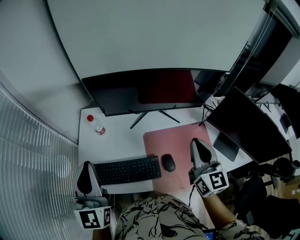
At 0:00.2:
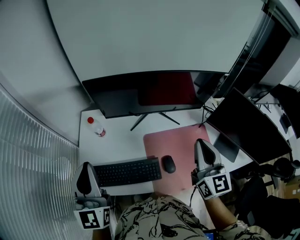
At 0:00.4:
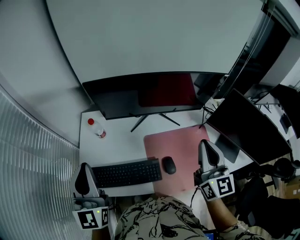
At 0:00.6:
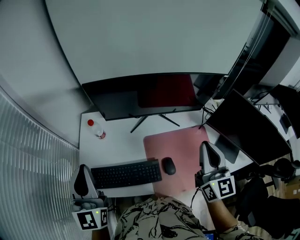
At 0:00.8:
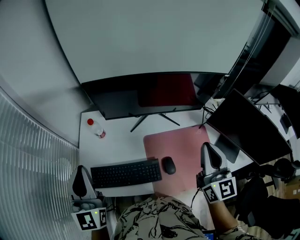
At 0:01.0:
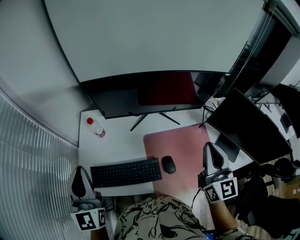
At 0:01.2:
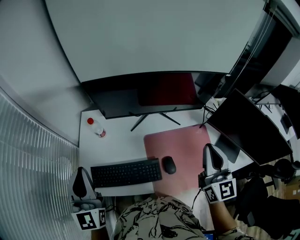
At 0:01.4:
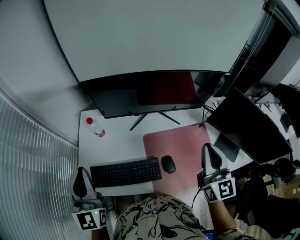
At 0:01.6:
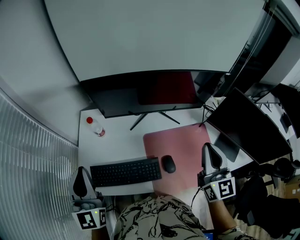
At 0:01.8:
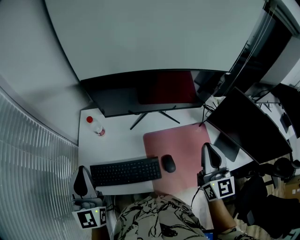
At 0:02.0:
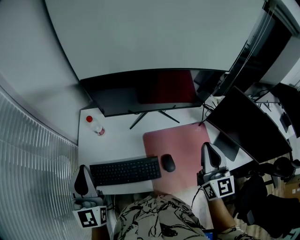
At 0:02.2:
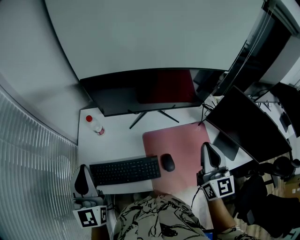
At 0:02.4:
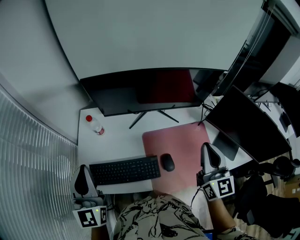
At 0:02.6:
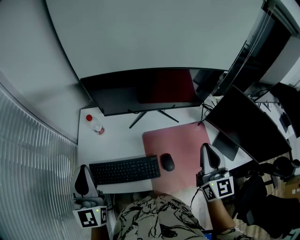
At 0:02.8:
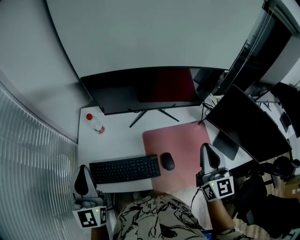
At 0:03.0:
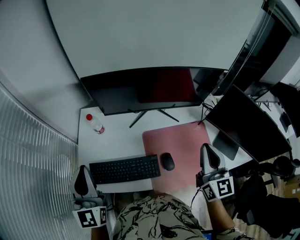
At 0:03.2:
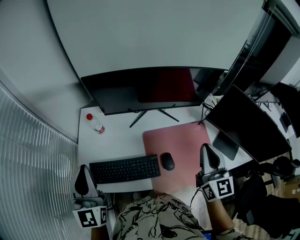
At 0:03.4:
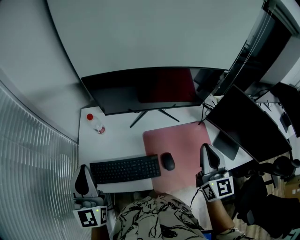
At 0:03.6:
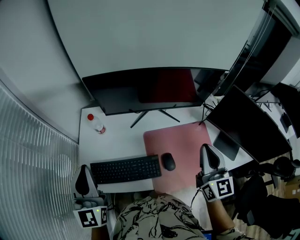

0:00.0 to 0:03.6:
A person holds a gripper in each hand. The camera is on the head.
0:00.0 to 0:03.6: The grippers move only a little.

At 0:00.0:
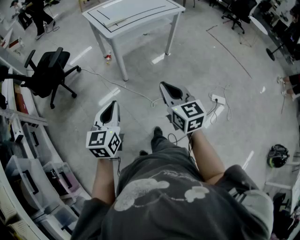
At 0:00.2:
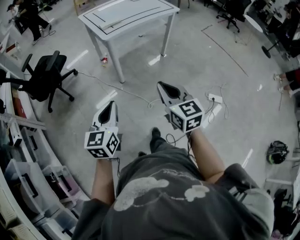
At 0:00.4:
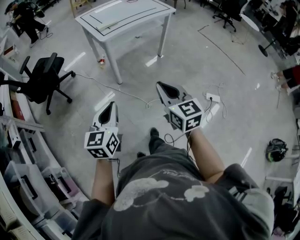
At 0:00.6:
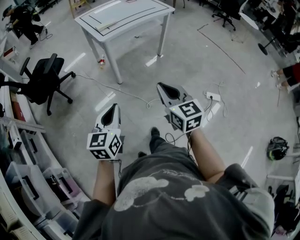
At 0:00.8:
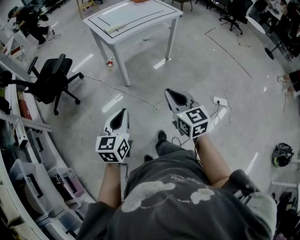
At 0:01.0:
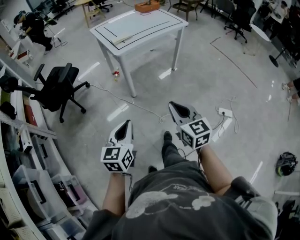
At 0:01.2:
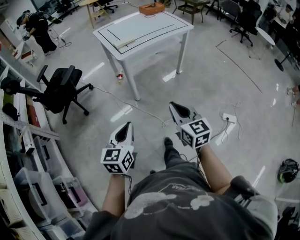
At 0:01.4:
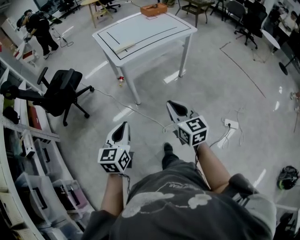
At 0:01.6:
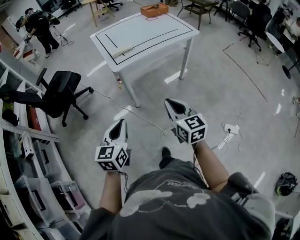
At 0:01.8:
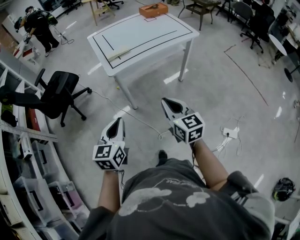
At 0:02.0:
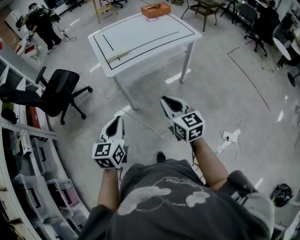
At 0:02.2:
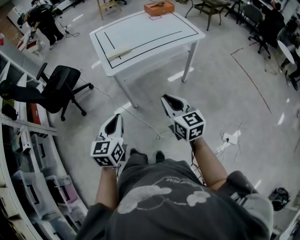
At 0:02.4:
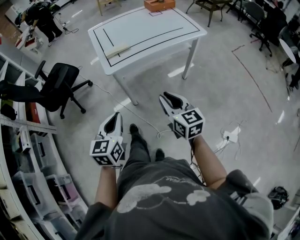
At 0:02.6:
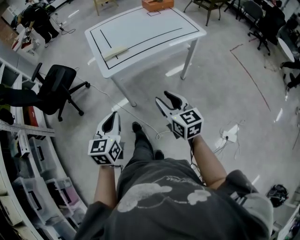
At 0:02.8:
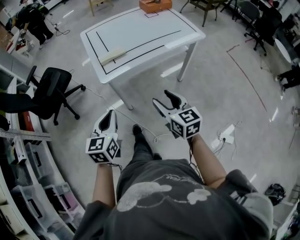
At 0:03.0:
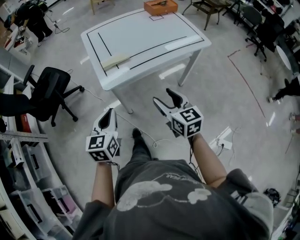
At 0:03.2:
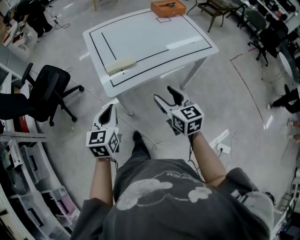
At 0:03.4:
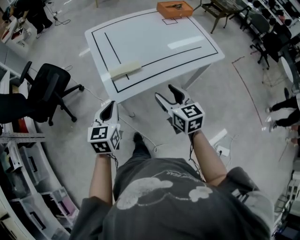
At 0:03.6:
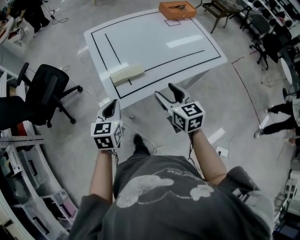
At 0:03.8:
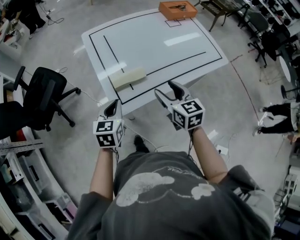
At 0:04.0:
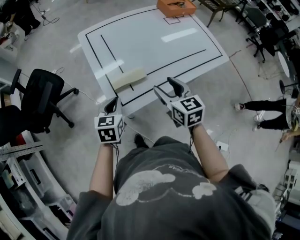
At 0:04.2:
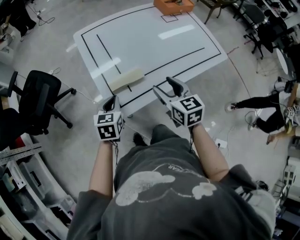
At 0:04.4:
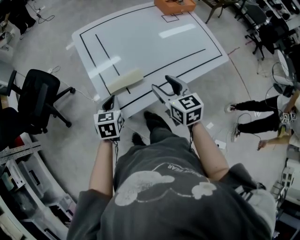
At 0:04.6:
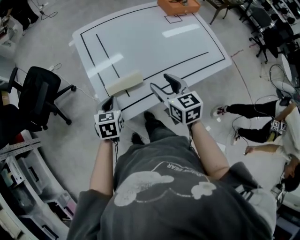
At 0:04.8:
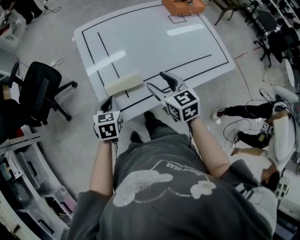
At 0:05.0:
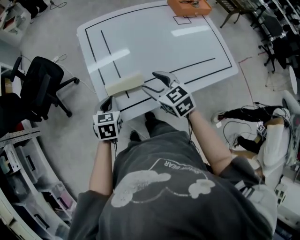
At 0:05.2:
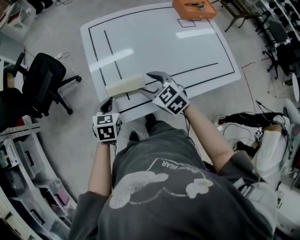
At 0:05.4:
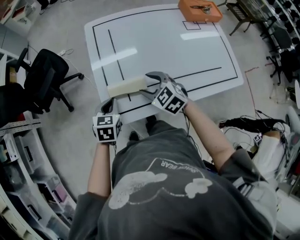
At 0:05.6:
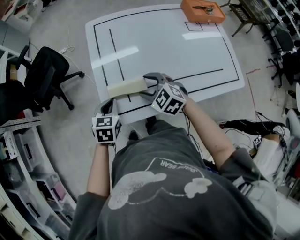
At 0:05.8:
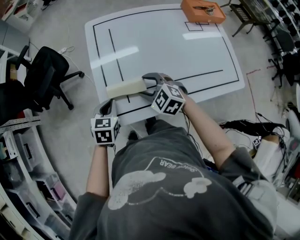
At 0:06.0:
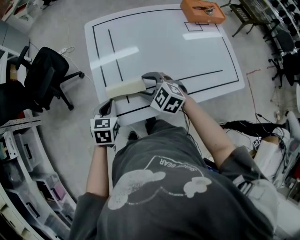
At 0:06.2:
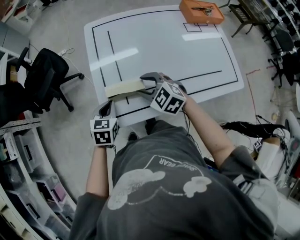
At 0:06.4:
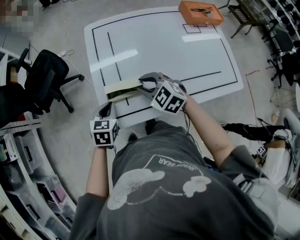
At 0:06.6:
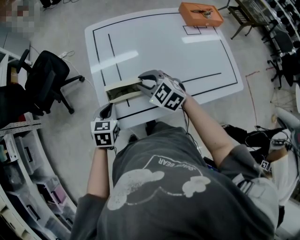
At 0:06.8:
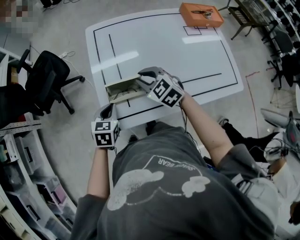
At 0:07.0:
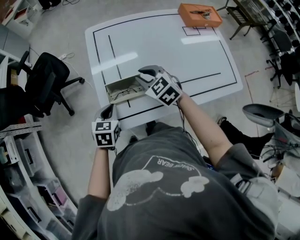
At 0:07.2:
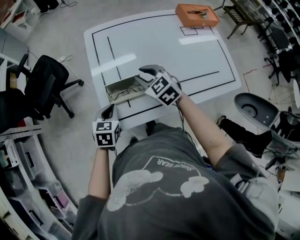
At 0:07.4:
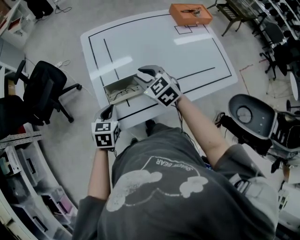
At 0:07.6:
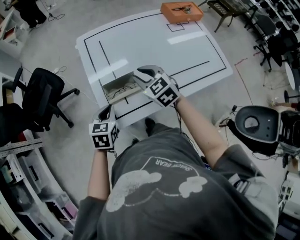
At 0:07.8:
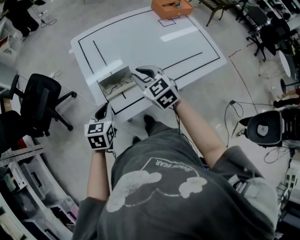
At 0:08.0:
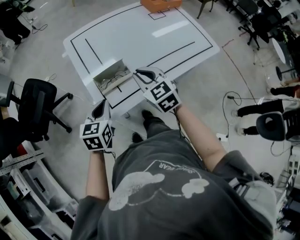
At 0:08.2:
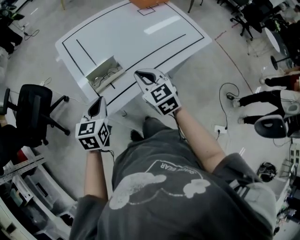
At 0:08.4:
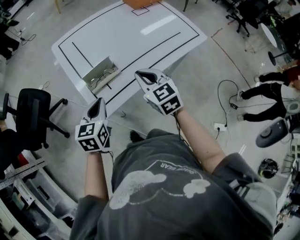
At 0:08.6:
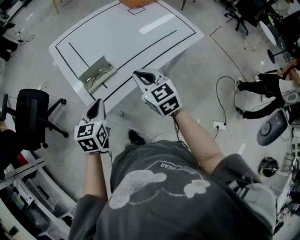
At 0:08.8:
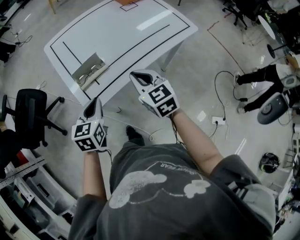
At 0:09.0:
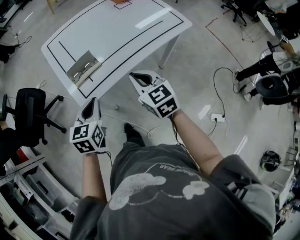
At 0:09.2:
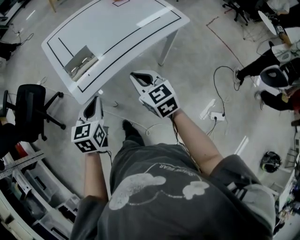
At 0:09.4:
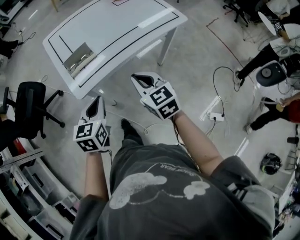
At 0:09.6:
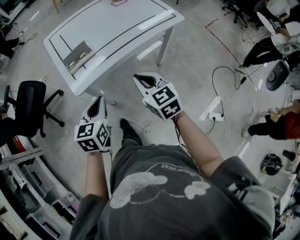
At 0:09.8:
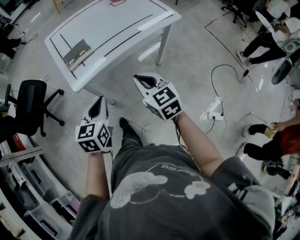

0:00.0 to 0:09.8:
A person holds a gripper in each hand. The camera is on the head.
0:00.0 to 0:01.4: The two grippers go roughly 10 cm forward.
0:01.4 to 0:02.8: Both grippers move forward, some 25 cm. The right gripper opens its fingers.
0:02.8 to 0:04.2: The two grippers go approximately 30 cm forward.
0:04.2 to 0:05.6: The right gripper changes place by about 15 cm, and rotates approximately 60 degrees.
0:05.6 to 0:07.0: The right gripper heads forward, covering about 5 cm, and closes.
0:07.0 to 0:08.4: The right gripper changes place by about 20 cm, and swivels about 40 degrees, while the left gripper travels upward by some 10 cm, and rotates some 20 degrees.
0:08.4 to 0:09.8: The grippers both shift backward and to the right by approximately 25 cm.

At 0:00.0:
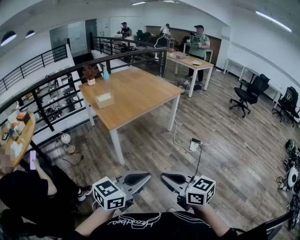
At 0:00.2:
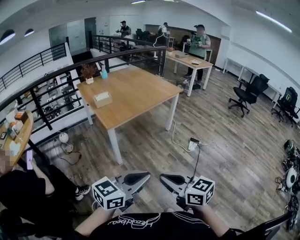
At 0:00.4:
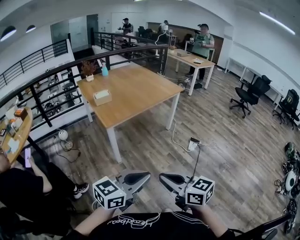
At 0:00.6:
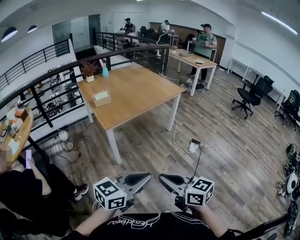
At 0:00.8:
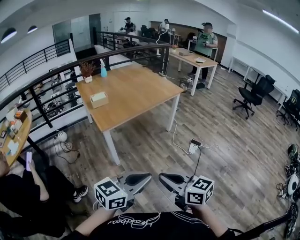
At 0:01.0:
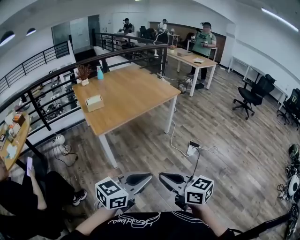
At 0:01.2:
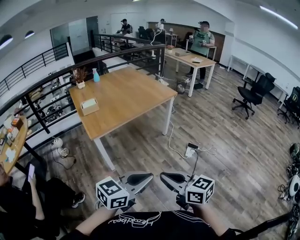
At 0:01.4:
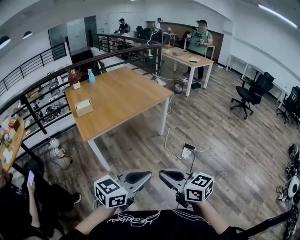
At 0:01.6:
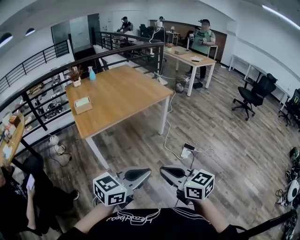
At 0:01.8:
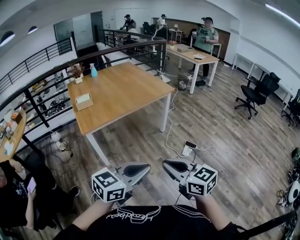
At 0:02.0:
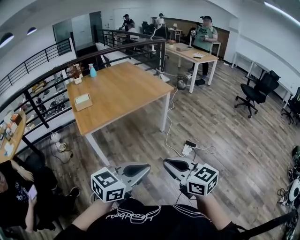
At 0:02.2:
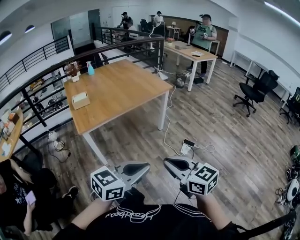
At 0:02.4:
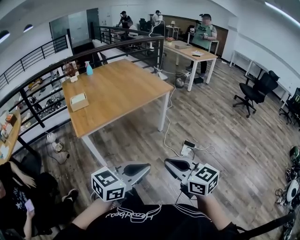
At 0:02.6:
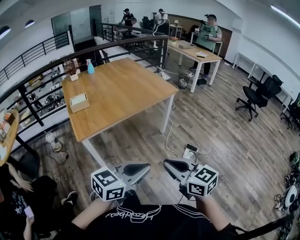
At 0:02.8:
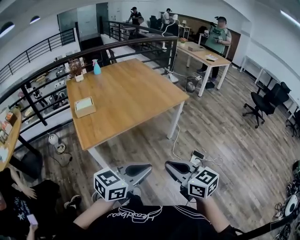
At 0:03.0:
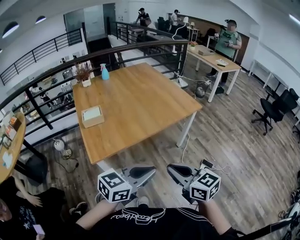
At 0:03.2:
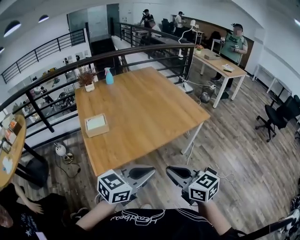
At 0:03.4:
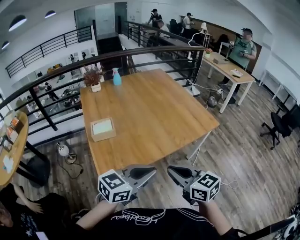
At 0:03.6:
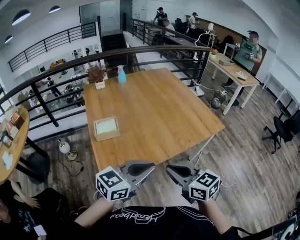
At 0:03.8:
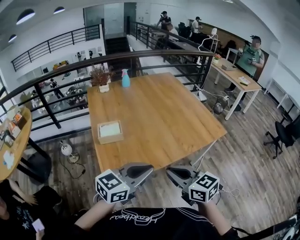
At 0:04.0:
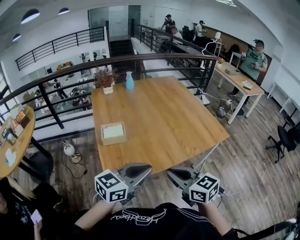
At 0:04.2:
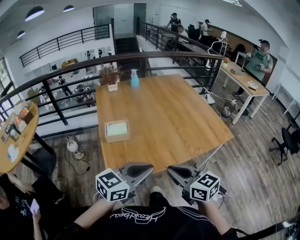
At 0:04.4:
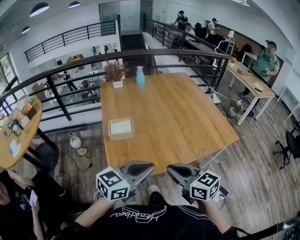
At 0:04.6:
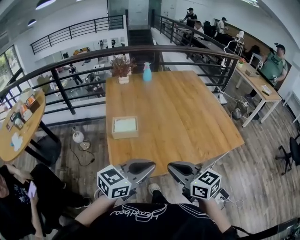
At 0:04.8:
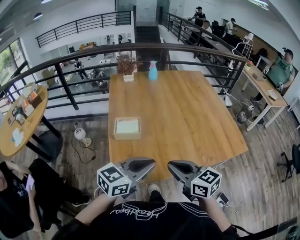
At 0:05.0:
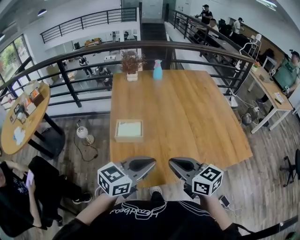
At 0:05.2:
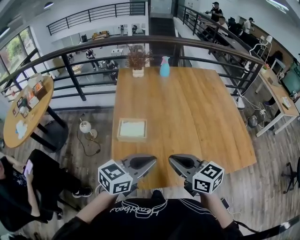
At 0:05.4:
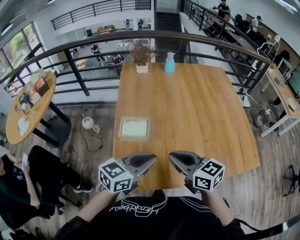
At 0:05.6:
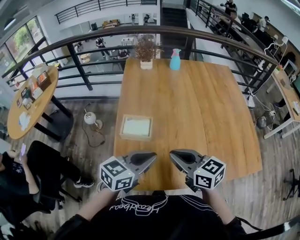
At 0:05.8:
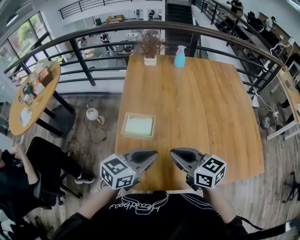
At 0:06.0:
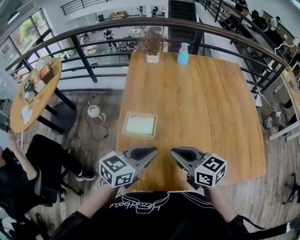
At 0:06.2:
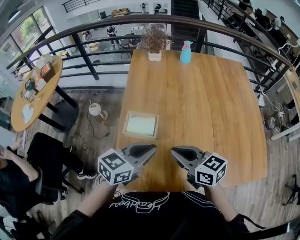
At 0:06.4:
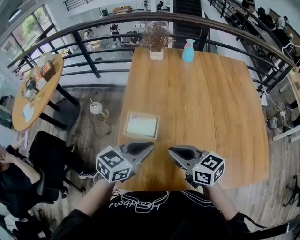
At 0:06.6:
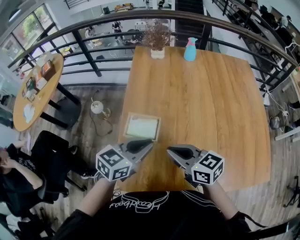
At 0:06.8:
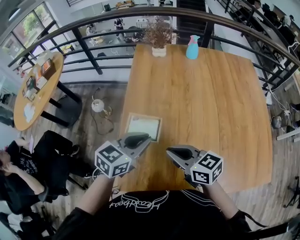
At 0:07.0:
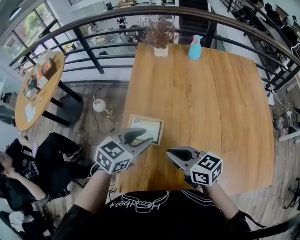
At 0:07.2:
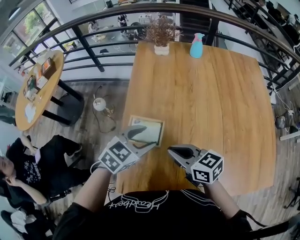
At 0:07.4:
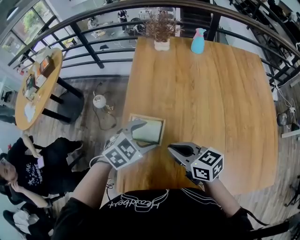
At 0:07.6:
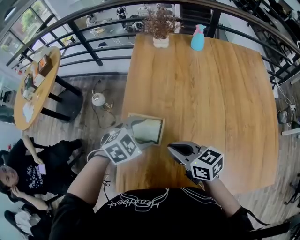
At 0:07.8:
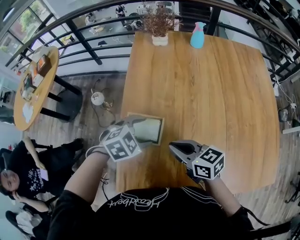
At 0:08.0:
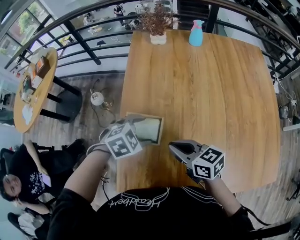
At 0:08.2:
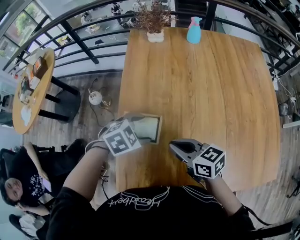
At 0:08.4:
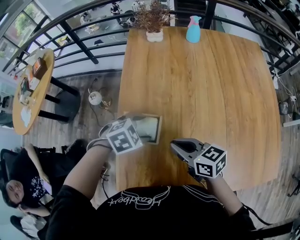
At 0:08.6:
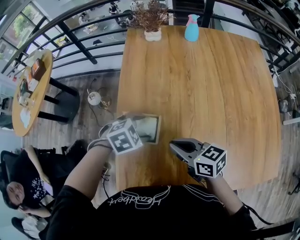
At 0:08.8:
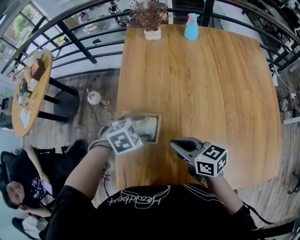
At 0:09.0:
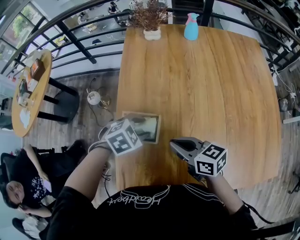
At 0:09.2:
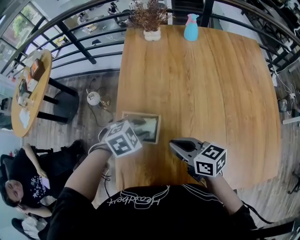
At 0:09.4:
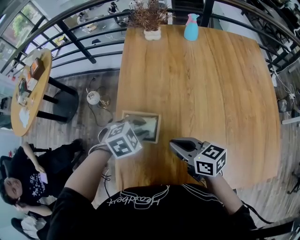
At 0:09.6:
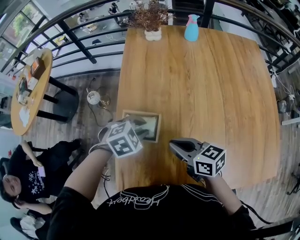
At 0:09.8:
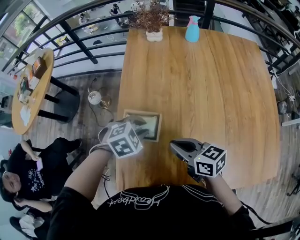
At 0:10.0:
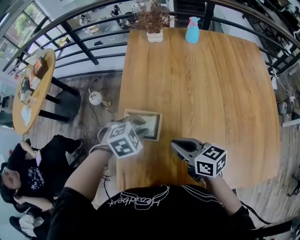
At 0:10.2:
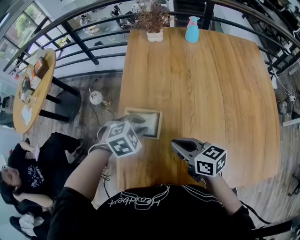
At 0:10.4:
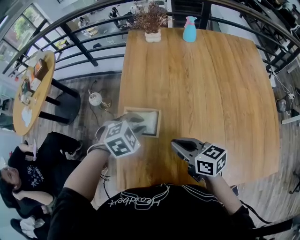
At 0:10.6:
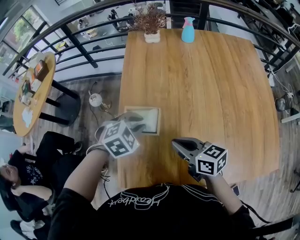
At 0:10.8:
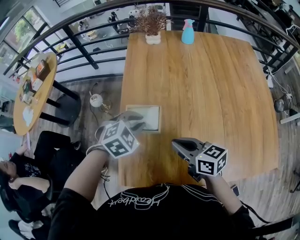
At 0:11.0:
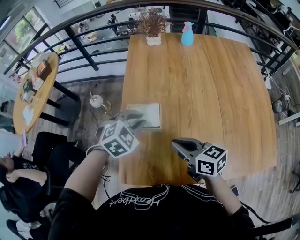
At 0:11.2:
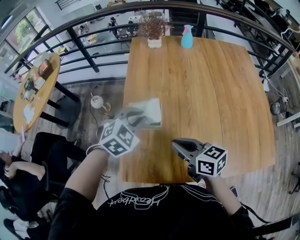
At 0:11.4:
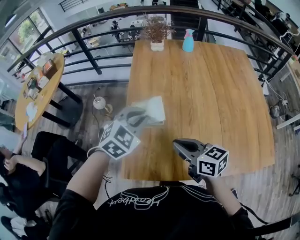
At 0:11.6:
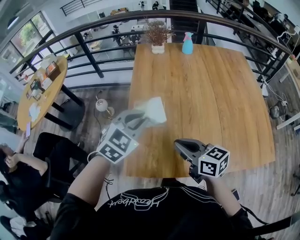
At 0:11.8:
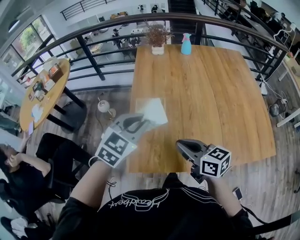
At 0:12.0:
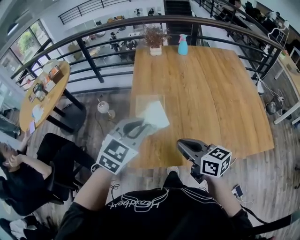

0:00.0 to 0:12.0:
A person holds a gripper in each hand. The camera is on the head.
0:00.0 to 0:01.6: Both grippers travel together to the right and forward, roughly 35 cm.
0:01.6 to 0:03.0: The two grippers go some 35 cm forward and to the left.
0:03.0 to 0:04.4: Both grippers travel together forward and to the left, roughly 30 cm.
0:04.4 to 0:06.0: The grippers both shift forward by roughly 30 cm. The right gripper changes its angle by approximately 20 degrees; the left gripper rotates approximately 20 degrees.
0:06.0 to 0:07.6: The grippers both shift forward and downward by some 15 cm. The left gripper points its fingers some 40 degrees further downward, and opens its fingers.
0:07.6 to 0:09.0: The left gripper ends up roughly 5 cm from where it was.
0:09.0 to 0:10.4: The left gripper closes up.
0:10.4 to 0:12.0: Both grippers travel together backward and upward, about 25 cm. The left gripper tips its fingers upward by approximately 40 degrees.
